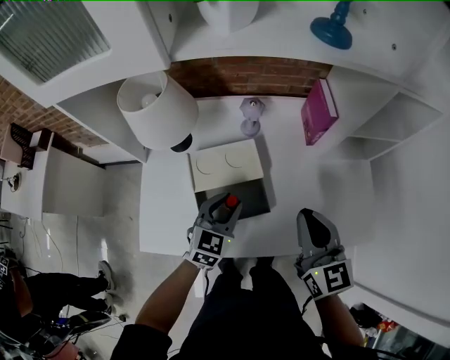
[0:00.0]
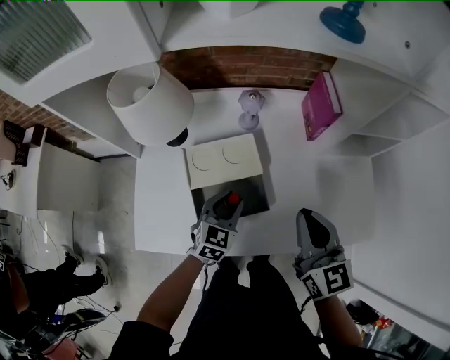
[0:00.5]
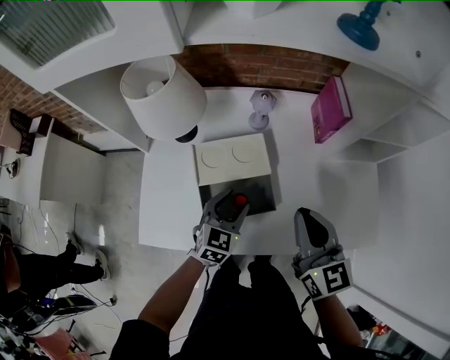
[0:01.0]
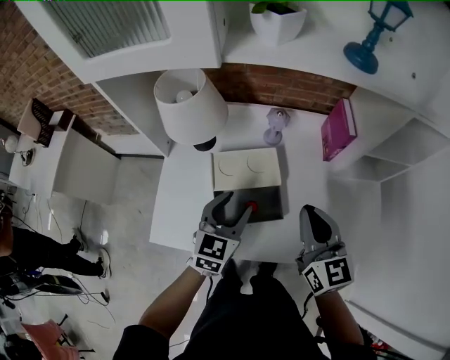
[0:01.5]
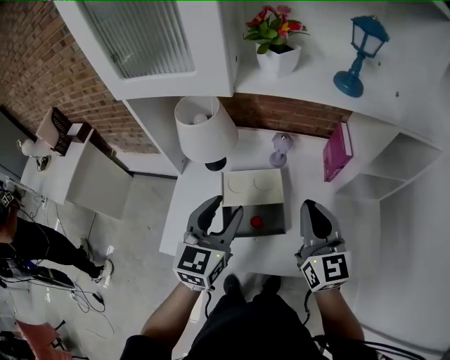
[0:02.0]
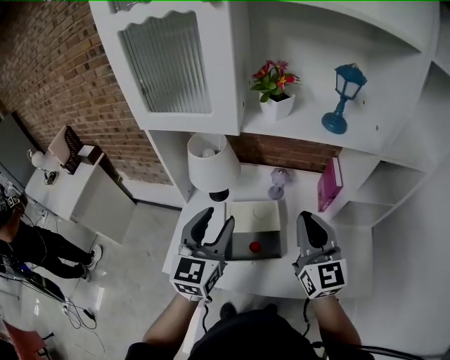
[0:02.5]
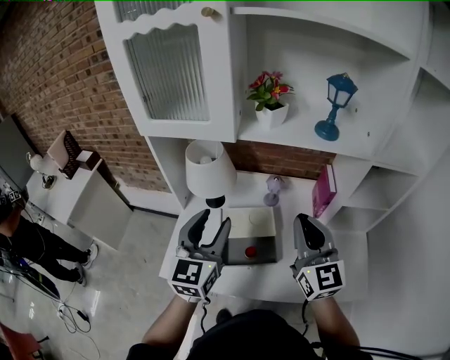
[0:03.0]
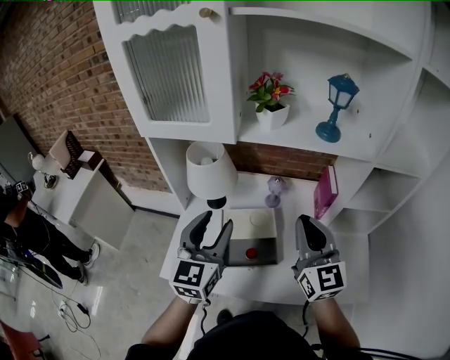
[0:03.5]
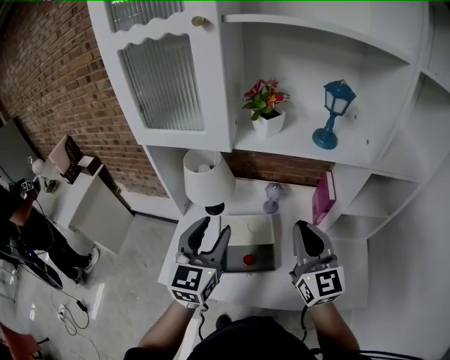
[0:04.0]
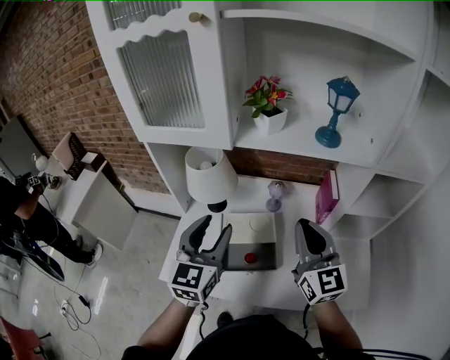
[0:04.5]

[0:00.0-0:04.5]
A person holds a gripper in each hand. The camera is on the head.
0:00.0 to 0:02.0: The right gripper goes some 10 cm upward and to the left. Meanwhile the left gripper travels upward by about 20 cm, and turns by roughly 30 degrees.
0:02.0 to 0:04.5: Both grippers travel together upward, roughly 10 cm.

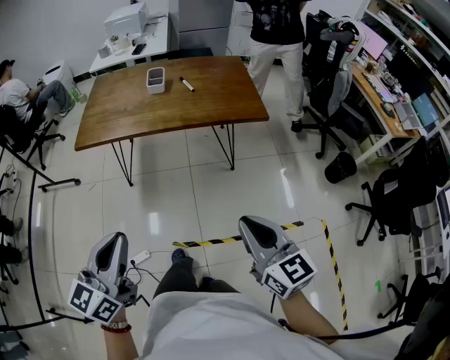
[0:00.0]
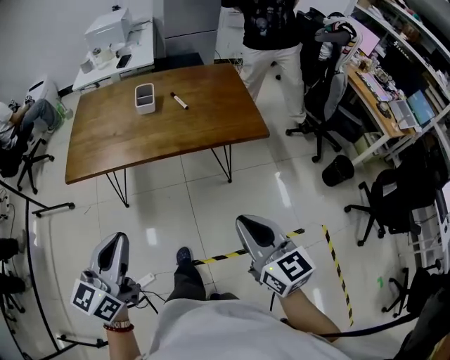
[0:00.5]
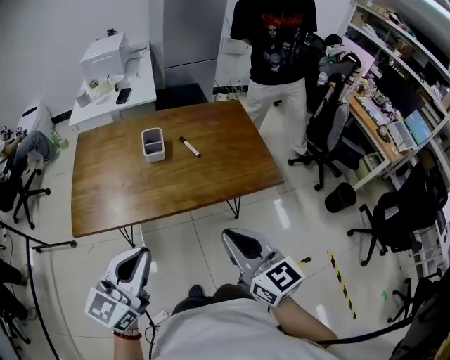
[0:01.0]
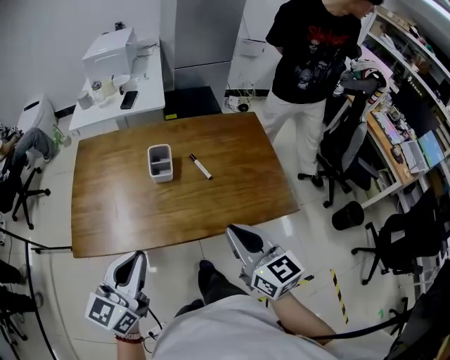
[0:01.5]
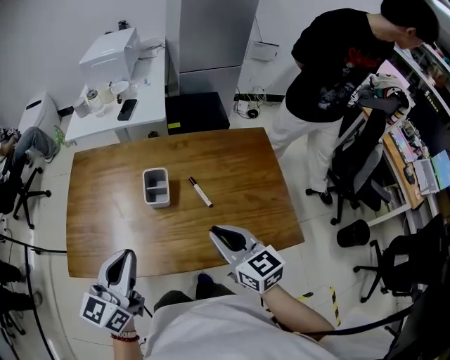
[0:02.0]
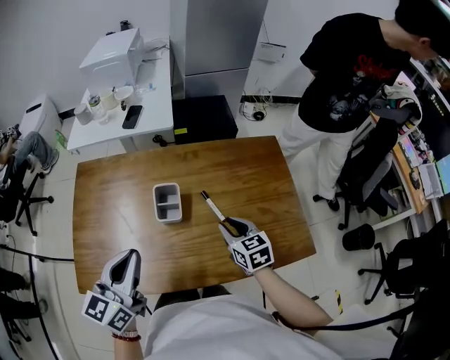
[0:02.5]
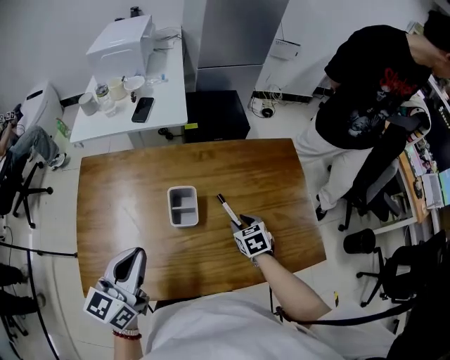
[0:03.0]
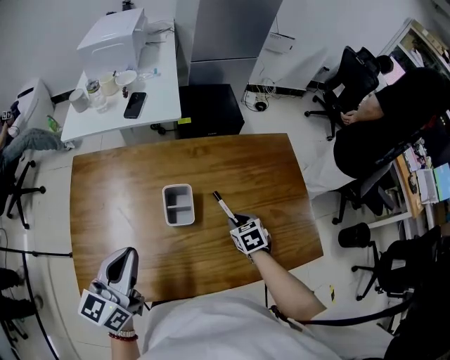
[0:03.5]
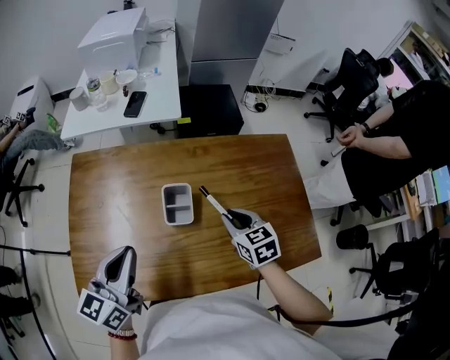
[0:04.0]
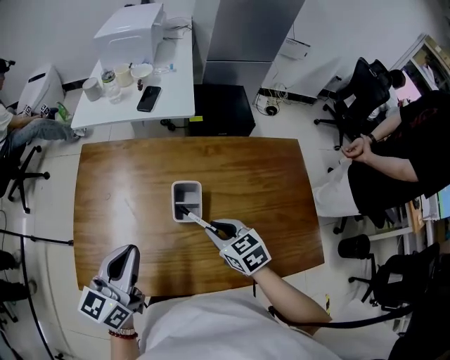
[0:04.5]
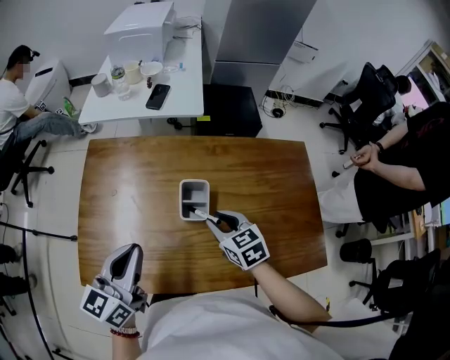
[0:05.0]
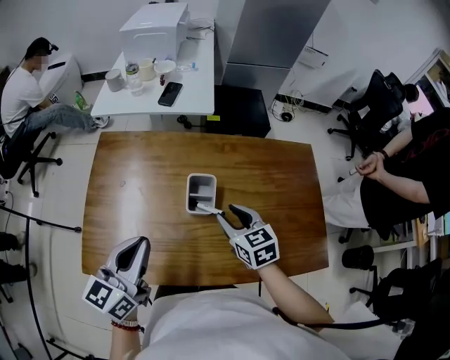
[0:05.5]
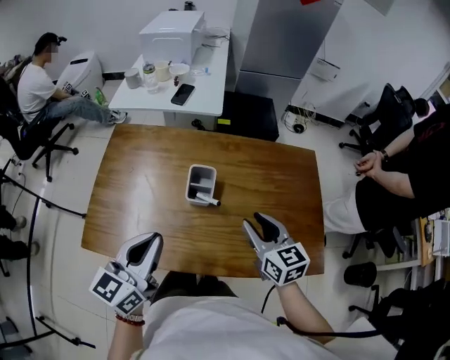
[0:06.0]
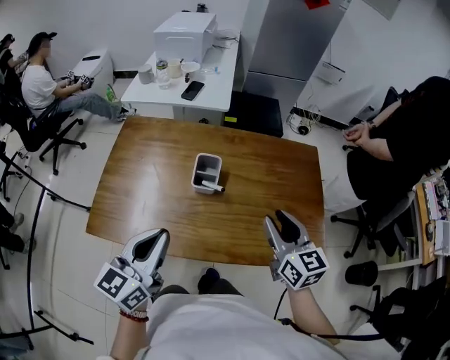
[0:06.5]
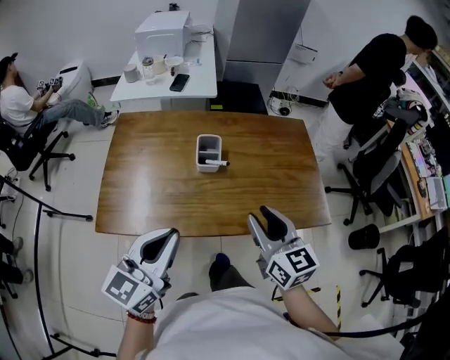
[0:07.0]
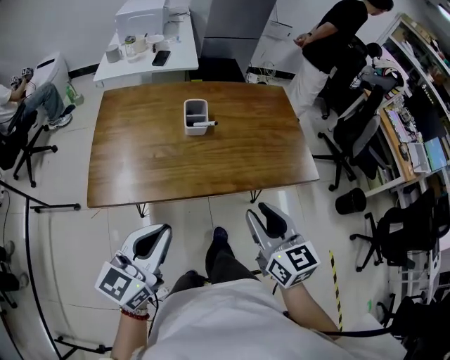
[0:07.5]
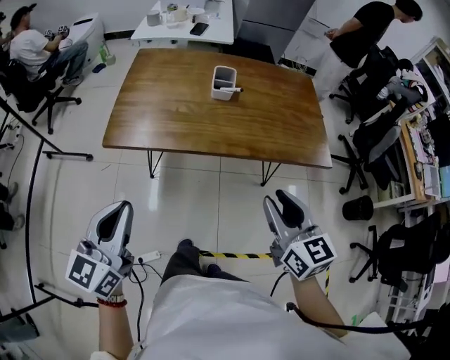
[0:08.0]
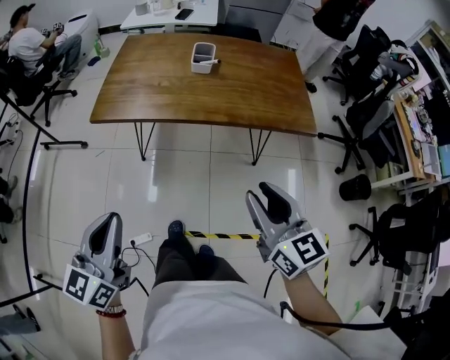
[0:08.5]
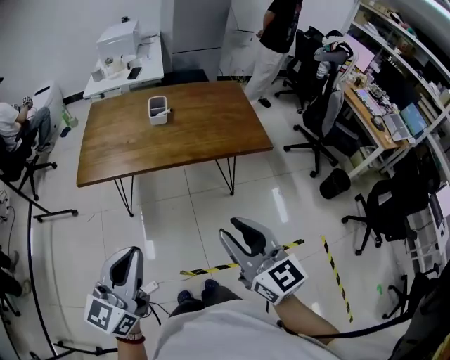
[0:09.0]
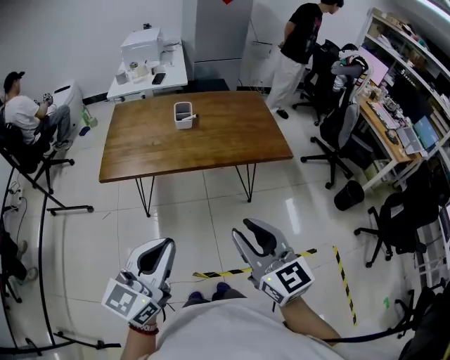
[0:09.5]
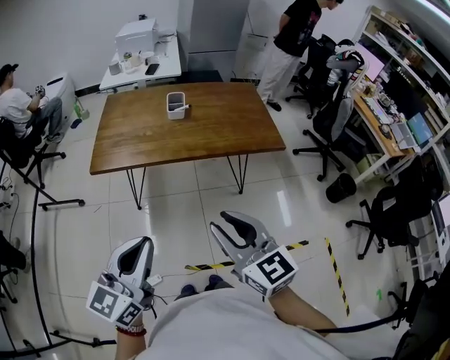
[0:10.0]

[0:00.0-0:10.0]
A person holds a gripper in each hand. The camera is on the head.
0:00.0 to 0:02.0: The two grippers travel together, forward, approximately 60 cm.
0:02.0 to 0:04.0: The left gripper moves forward and to the left, approximately 15 cm. Meanwhile the right gripper moves forward and downward, some 20 cm, and changes its angle by about 30 degrees.
0:04.0 to 0:06.0: The right gripper moves upward and backward, about 10 cm, and travels to the left and back again, approximately 10 cm each way, while the left gripper is displaced backward by approximately 10 cm.
0:06.0 to 0:08.0: Both grippers move backward, approximately 35 cm.
0:08.0 to 0:10.0: The right gripper heads backward, covering some 20 cm, while the left gripper is displaced backward and to the right by about 20 cm.

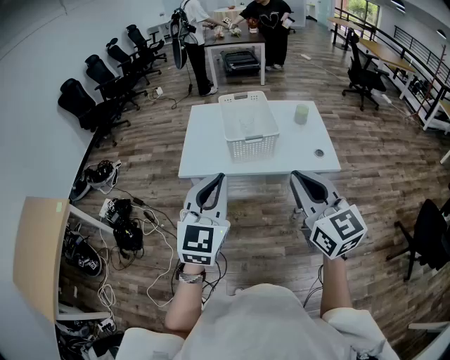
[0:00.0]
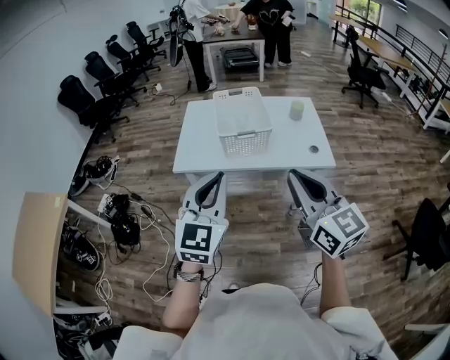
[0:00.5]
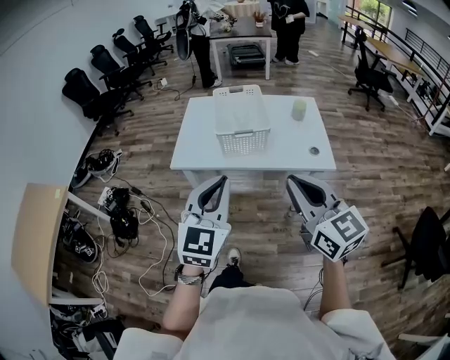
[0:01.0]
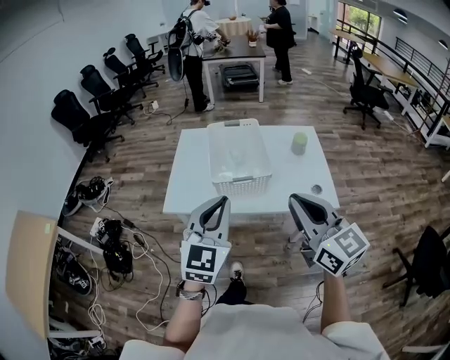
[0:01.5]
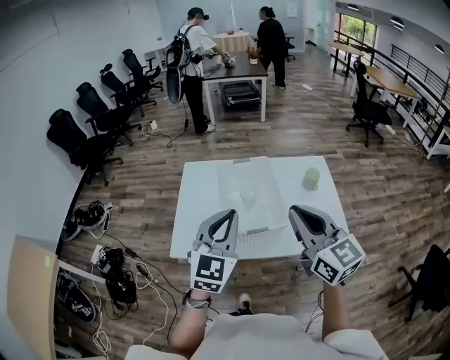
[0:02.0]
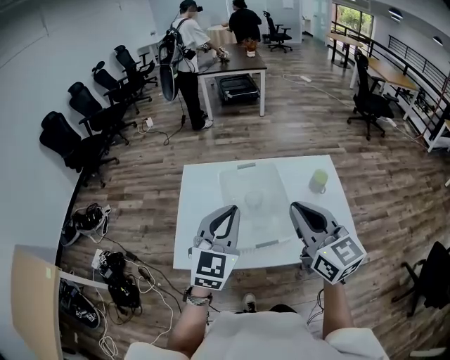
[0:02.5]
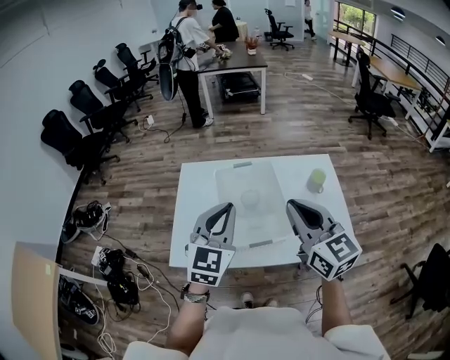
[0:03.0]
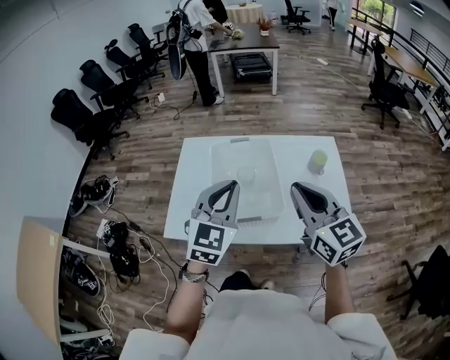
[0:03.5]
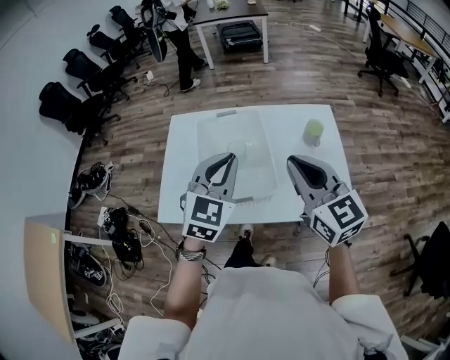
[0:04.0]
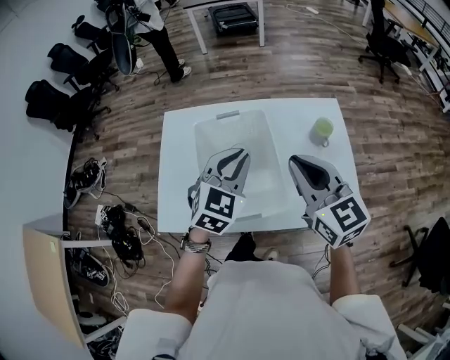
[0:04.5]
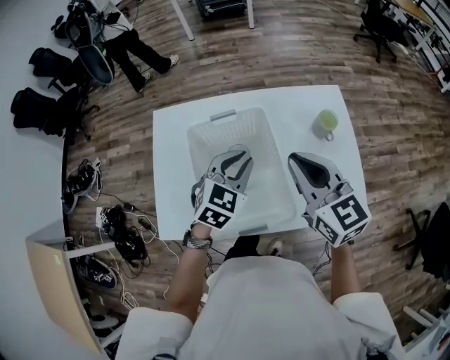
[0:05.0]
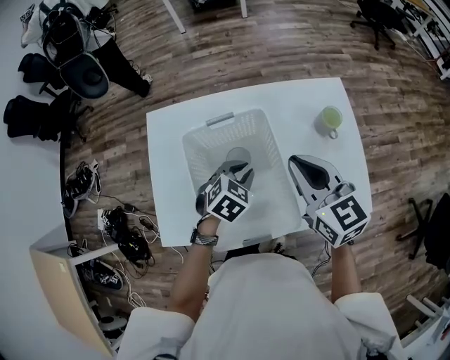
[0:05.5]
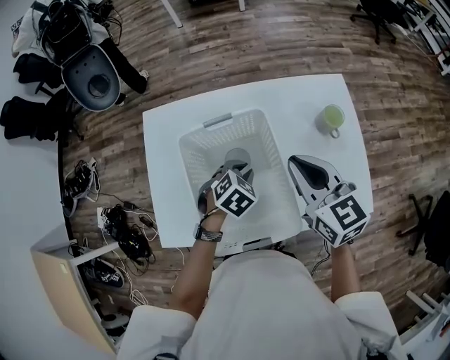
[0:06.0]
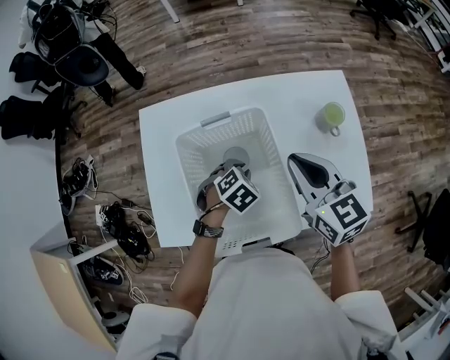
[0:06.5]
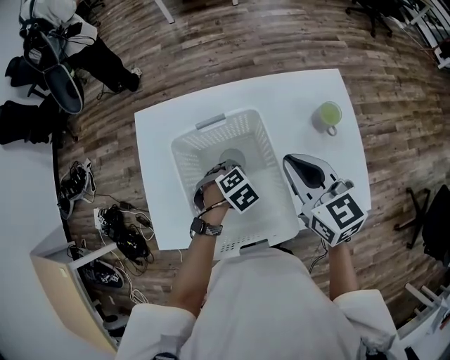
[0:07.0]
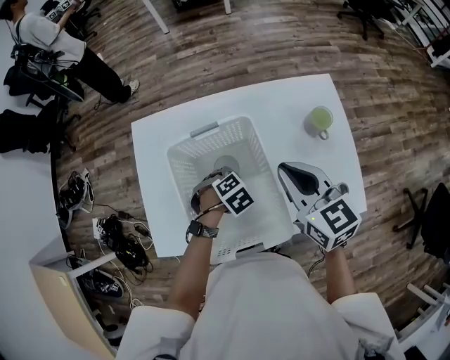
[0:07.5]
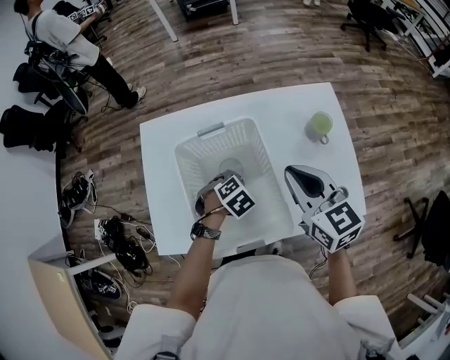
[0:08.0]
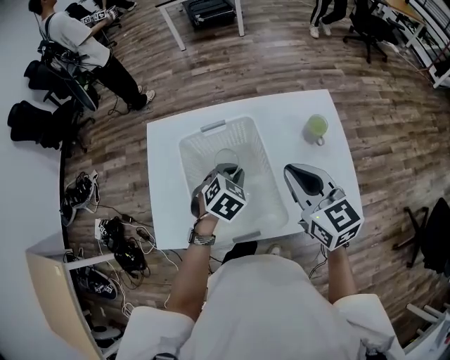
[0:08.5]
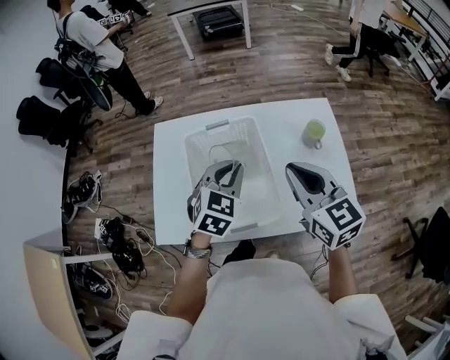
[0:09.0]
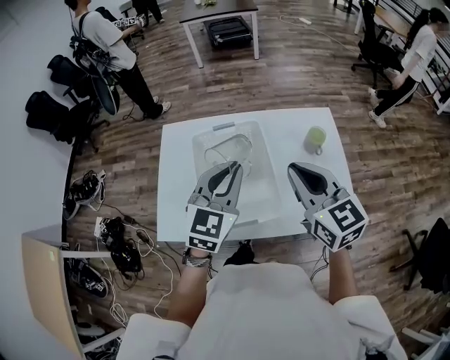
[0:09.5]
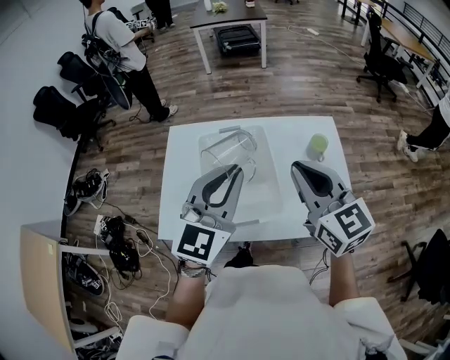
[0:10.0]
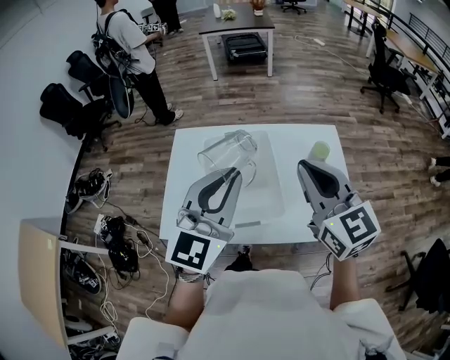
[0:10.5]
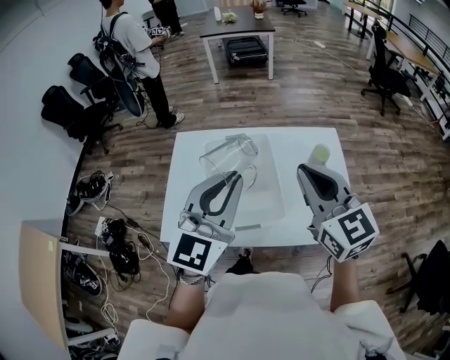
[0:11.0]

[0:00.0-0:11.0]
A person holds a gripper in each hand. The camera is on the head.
0:00.0 to 0:02.0: Both grippers travel together forward, approximately 30 cm.
0:02.0 to 0:03.5: The two grippers go some 10 cm forward and to the right.
0:03.5 to 0:05.5: The right gripper moves forward and downward, roughly 20 cm; the left gripper goes some 30 cm downward and forward, and tilts its fingers about 40 degrees downward.
0:05.5 to 0:07.5: The left gripper shifts about 10 cm downward, and swivels some 30 degrees.
0:07.5 to 0:09.0: The left gripper goes approximately 25 cm upward, and angles its fingers upward, by approximately 50 degrees. Meanwhile the right gripper goes approximately 10 cm upward.
0:09.0 to 0:11.0: The right gripper goes some 10 cm upward; the left gripper shifts about 20 cm upward and backward, and tilts its fingers roughly 40 degrees upward.

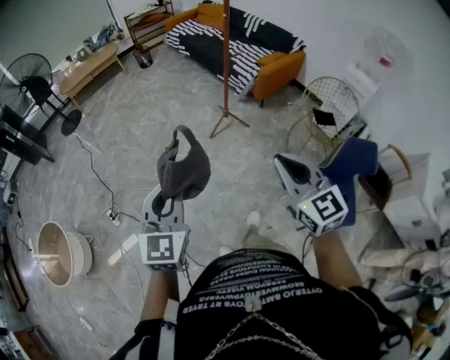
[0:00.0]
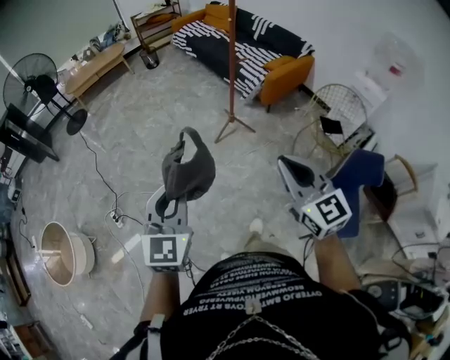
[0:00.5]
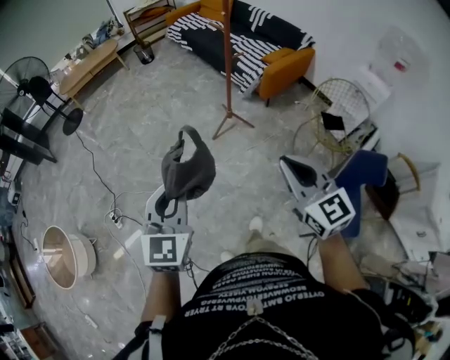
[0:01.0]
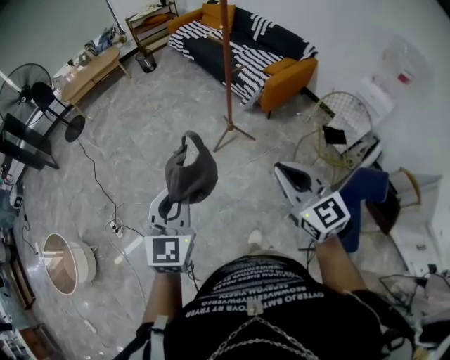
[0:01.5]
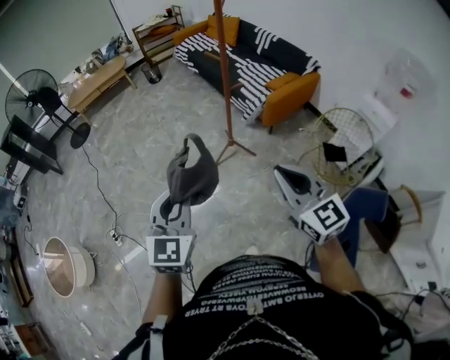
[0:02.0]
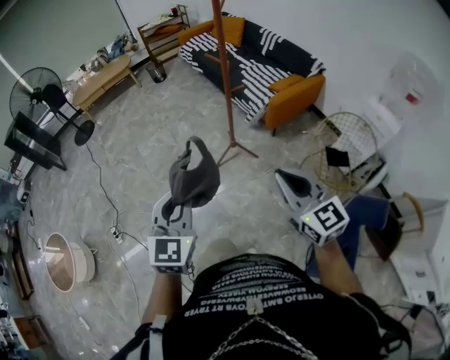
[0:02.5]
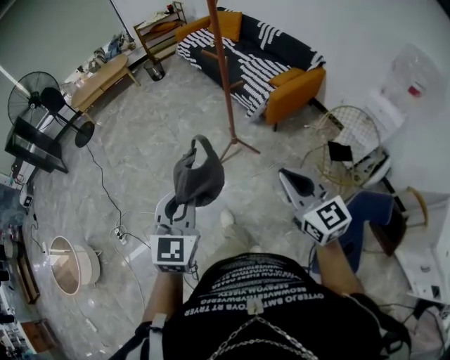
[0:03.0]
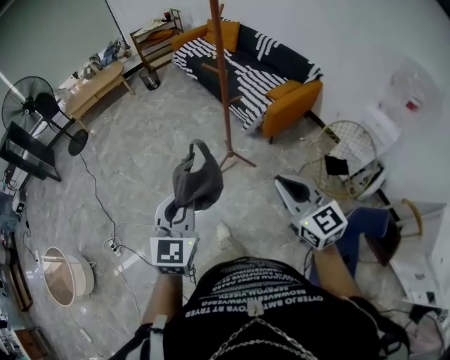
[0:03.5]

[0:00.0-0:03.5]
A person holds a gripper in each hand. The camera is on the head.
0:00.0 to 0:02.0: The two grippers go approximately 25 cm forward and to the right.
0:02.0 to 0:03.5: The grippers both shift forward by about 10 cm.
